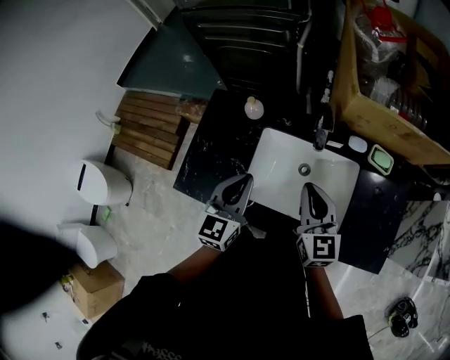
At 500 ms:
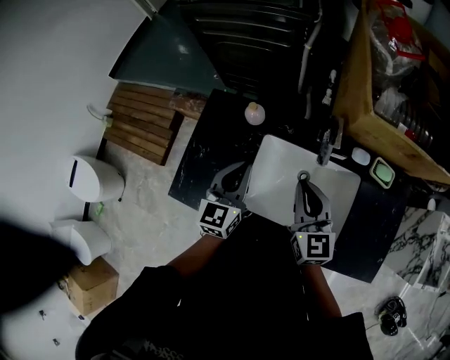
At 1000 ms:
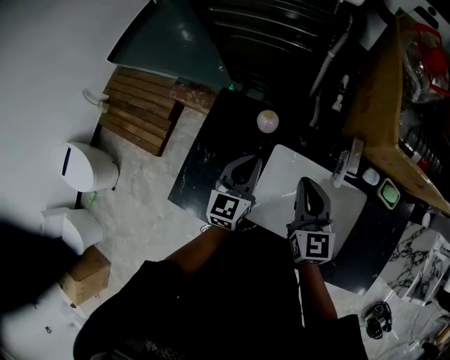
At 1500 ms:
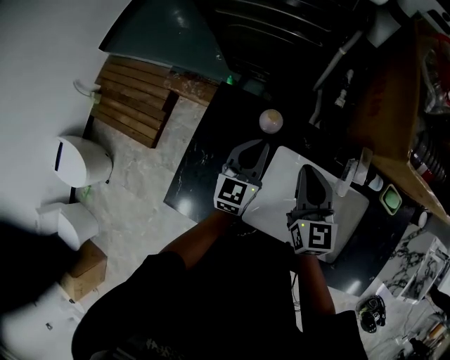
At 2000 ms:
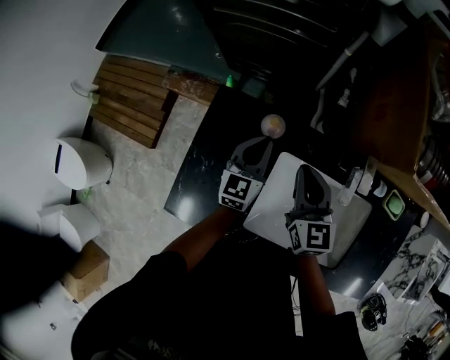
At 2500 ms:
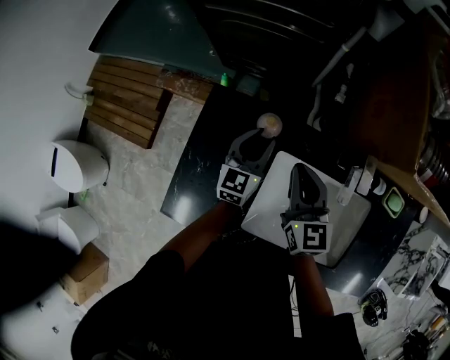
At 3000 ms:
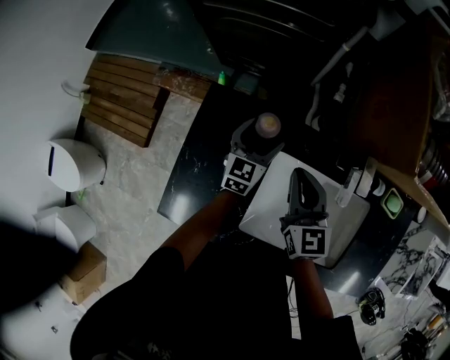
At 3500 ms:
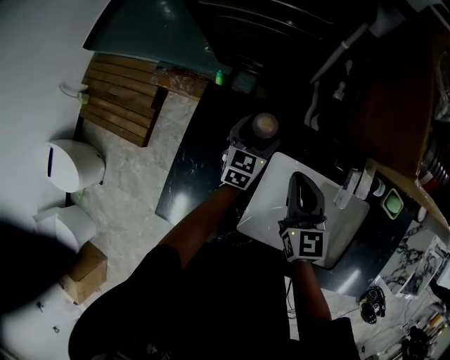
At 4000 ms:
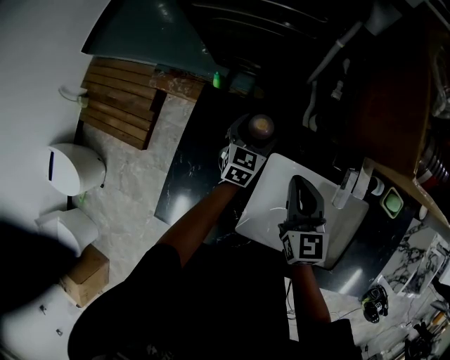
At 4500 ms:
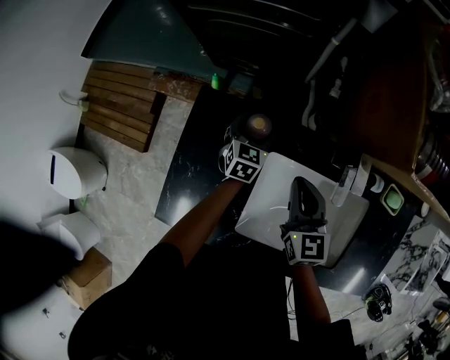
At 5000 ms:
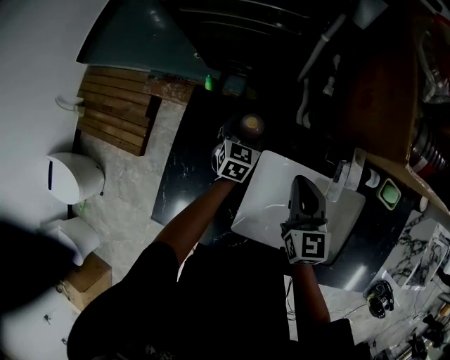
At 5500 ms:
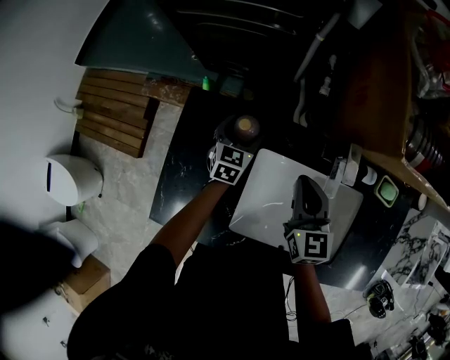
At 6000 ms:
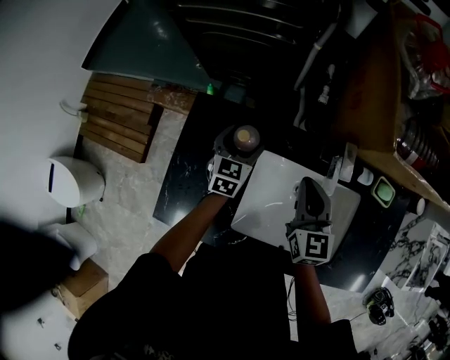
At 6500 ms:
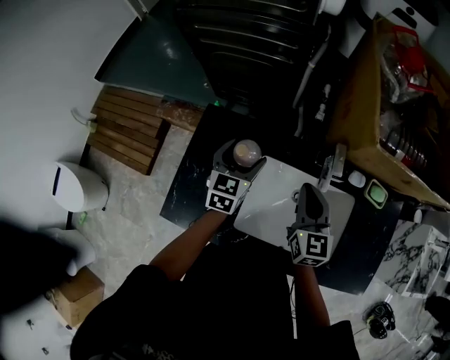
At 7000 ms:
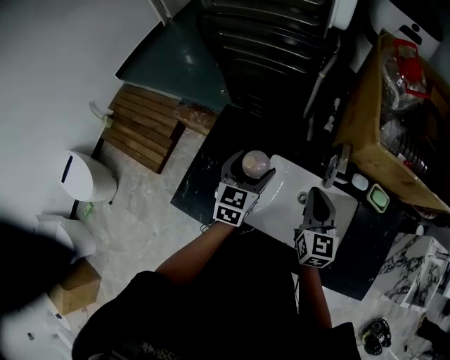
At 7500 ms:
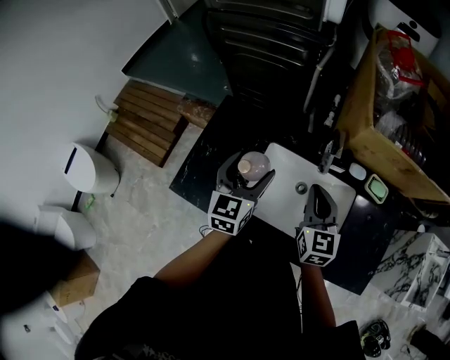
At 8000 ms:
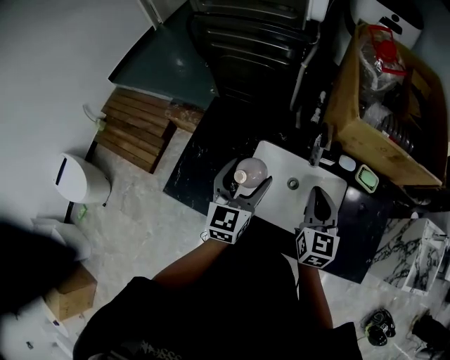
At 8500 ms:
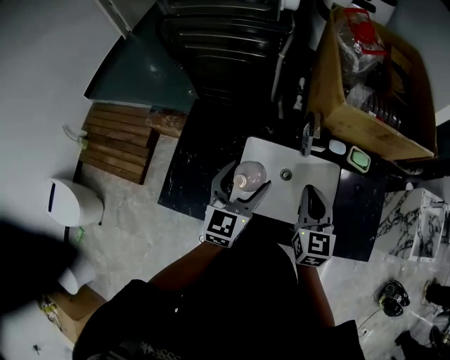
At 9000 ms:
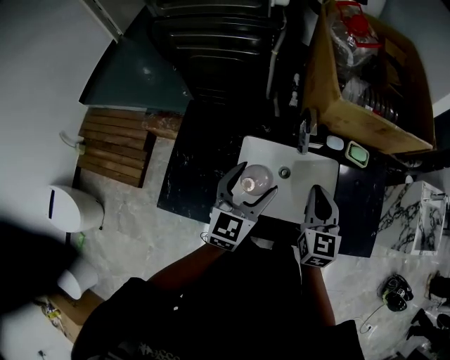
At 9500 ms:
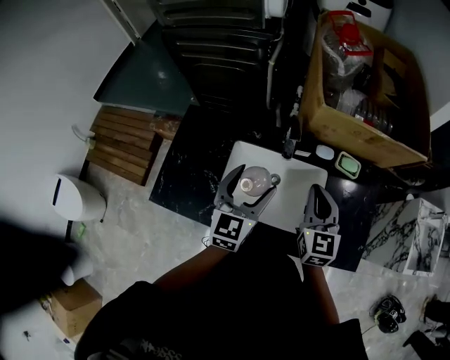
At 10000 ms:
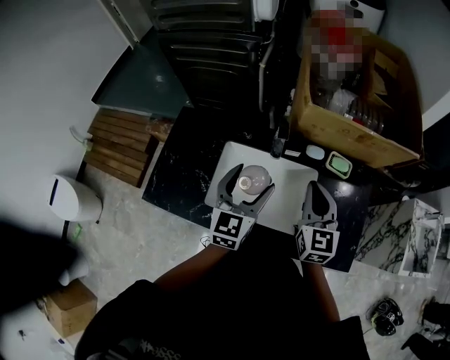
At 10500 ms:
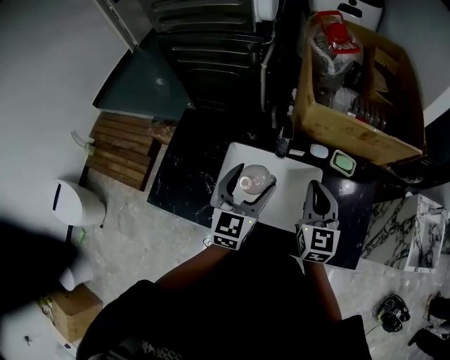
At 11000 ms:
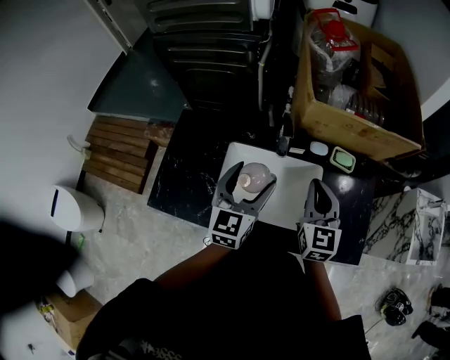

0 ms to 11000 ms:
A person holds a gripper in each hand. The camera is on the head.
0 ms to 2000 ms: The right gripper moves forward and to the left, approximately 25 cm; the left gripper is displaced forward and downward by about 30 cm.
2000 ms to 3500 ms: The left gripper heads downward and forward, covering roughly 10 cm, and opens.
3500 ms to 5500 ms: The right gripper is displaced to the right by some 5 cm.
5500 ms to 7500 ms: The right gripper moves backward, upward and to the right, some 15 cm. Meanwhile the left gripper is displaced upward and backward by some 30 cm, and turns by about 20 degrees.
7500 ms to 9000 ms: The right gripper moves roughly 5 cm. The left gripper heads to the right, covering approximately 5 cm.
9000 ms to 11000 ms: Both grippers move to the right, roughly 5 cm.

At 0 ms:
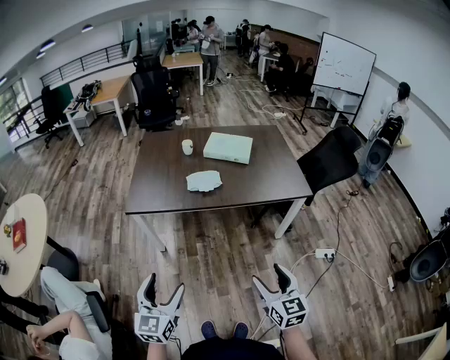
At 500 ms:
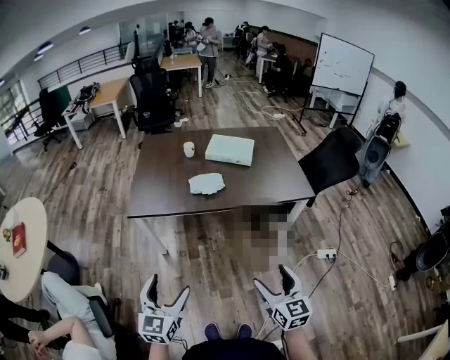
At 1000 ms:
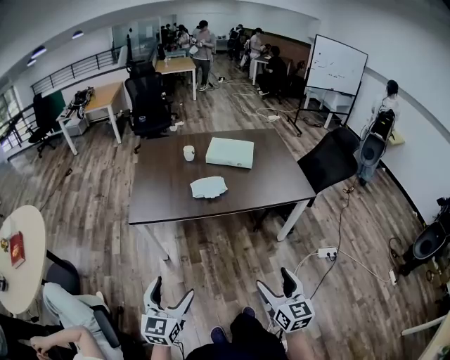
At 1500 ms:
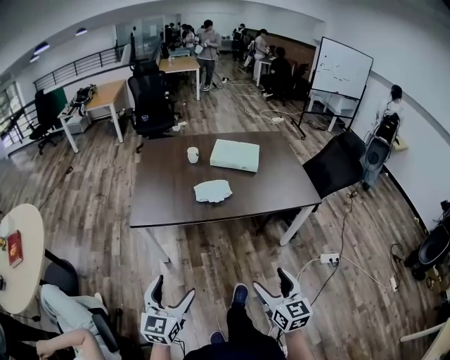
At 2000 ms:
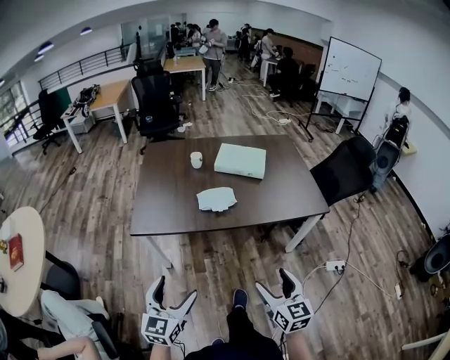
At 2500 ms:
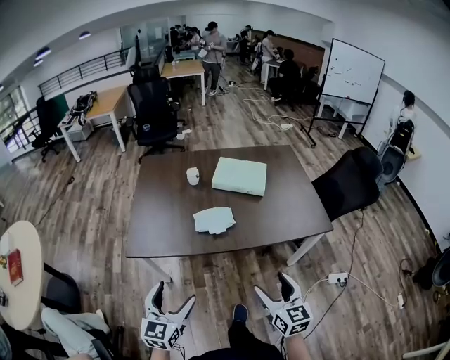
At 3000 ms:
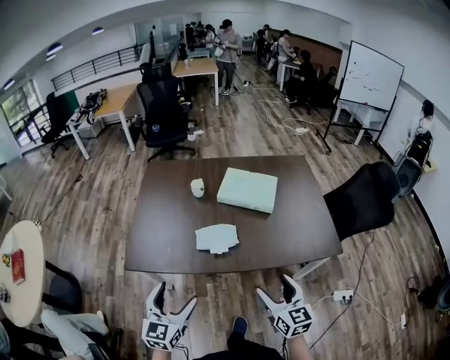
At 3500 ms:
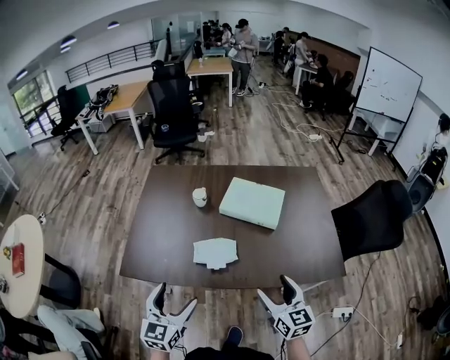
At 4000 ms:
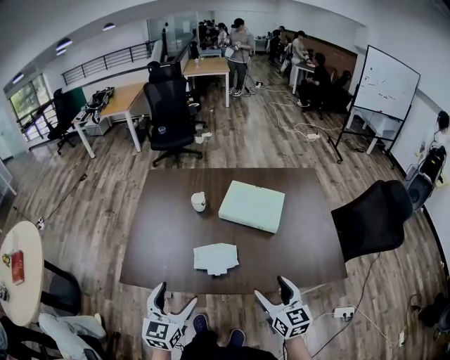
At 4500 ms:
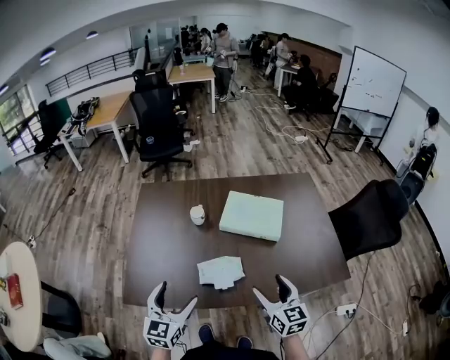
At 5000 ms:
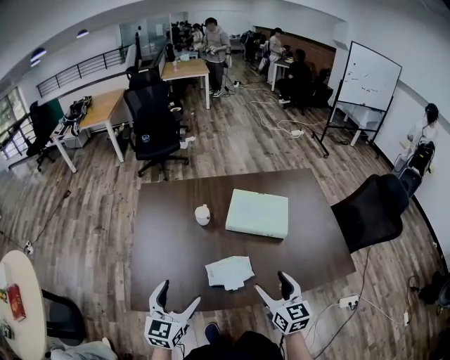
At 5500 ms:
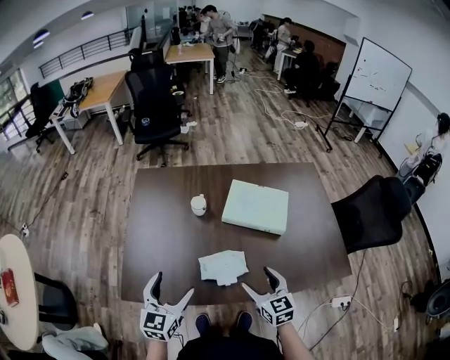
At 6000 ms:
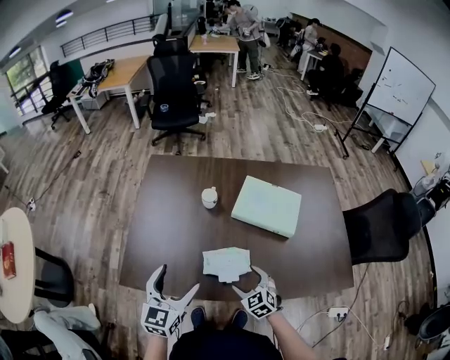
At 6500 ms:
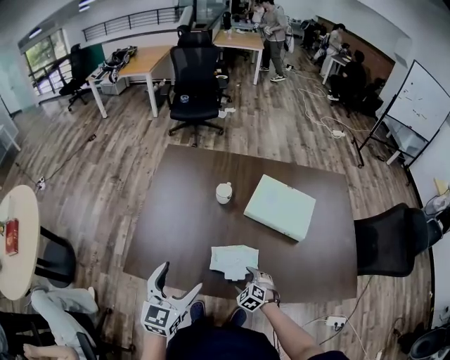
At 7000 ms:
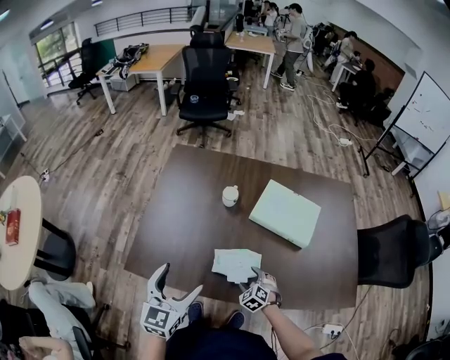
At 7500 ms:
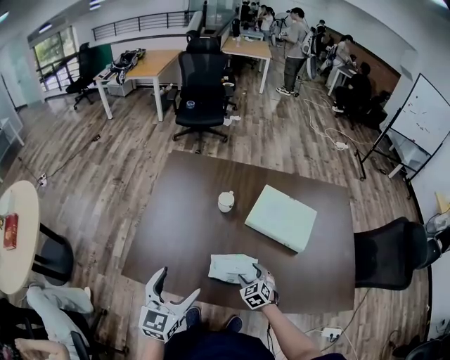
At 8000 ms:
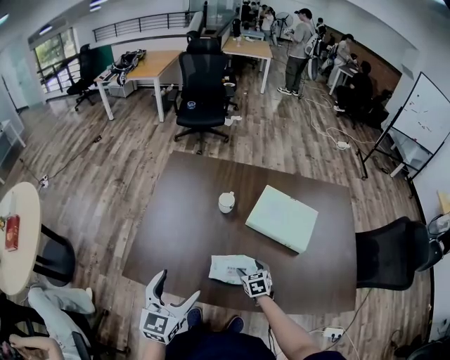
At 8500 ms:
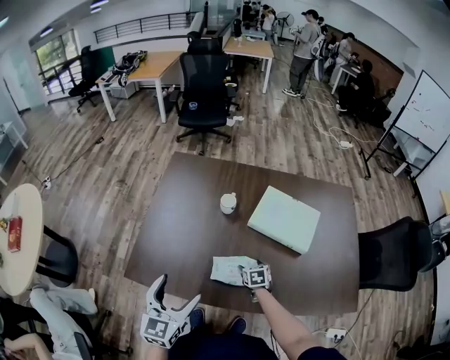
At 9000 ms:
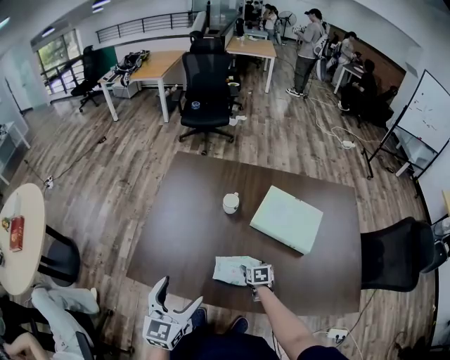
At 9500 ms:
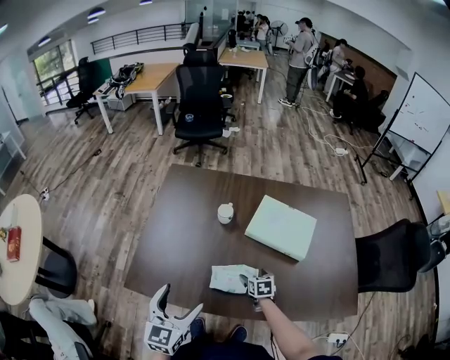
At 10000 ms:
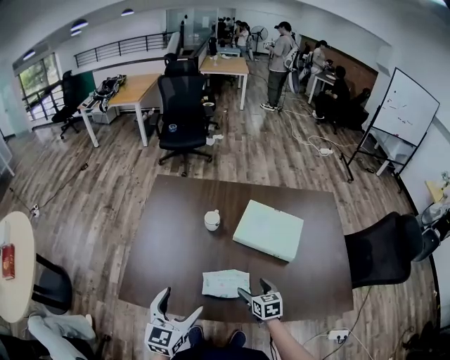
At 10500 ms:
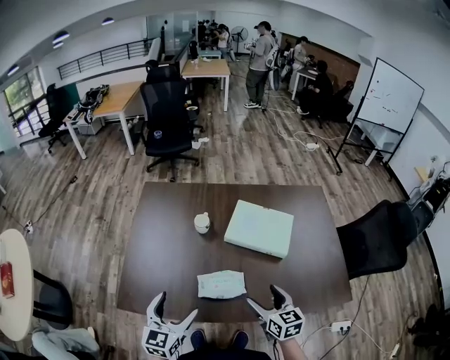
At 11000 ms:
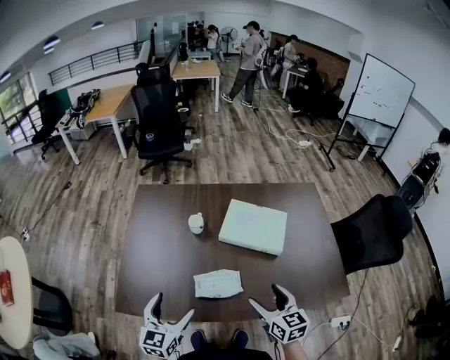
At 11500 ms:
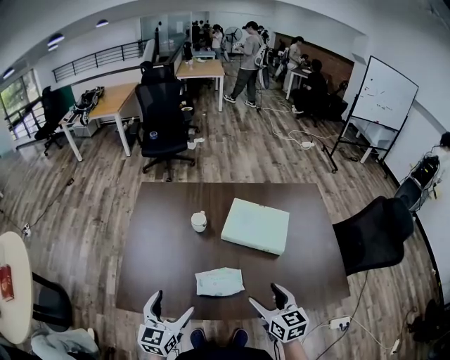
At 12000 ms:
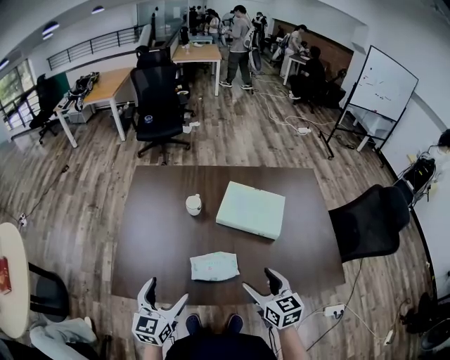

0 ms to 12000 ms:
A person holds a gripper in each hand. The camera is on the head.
0 ms to 2000 ms: The right gripper travels forward and to the left by some 15 cm, while the left gripper moves forward, about 15 cm.
2000 ms to 4000 ms: The grippers both shift forward by about 35 cm.
4000 ms to 6000 ms: The right gripper goes roughly 25 cm downward, to the left and forward, and turns by approximately 40 degrees, while the left gripper goes approximately 15 cm forward and to the left.
6000 ms to 8000 ms: The right gripper heads forward and downward, covering some 15 cm, and turns by approximately 20 degrees.
8000 ms to 10000 ms: The right gripper travels upward by some 10 cm.
10000 ms to 12000 ms: The right gripper shifts approximately 15 cm upward and backward.

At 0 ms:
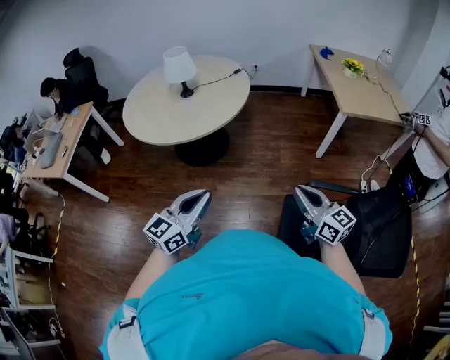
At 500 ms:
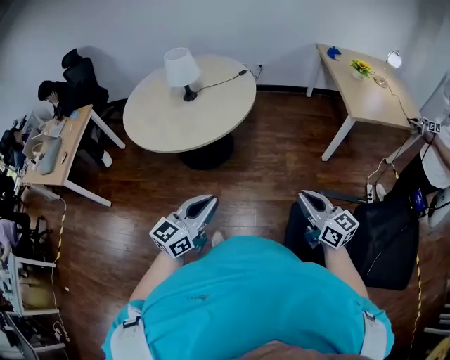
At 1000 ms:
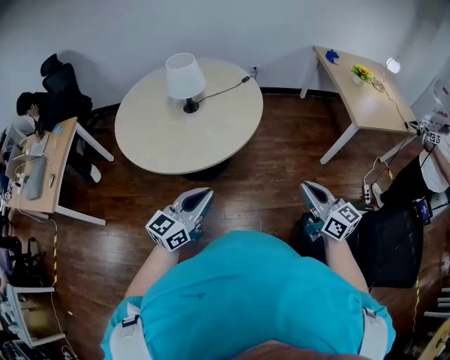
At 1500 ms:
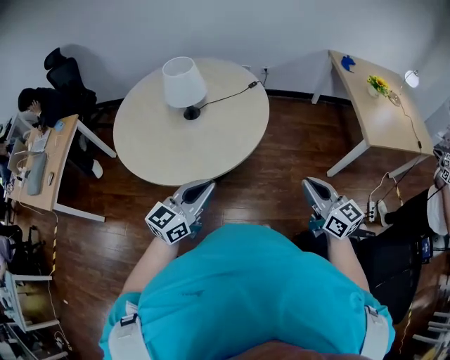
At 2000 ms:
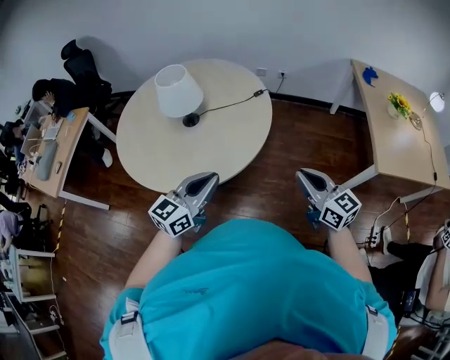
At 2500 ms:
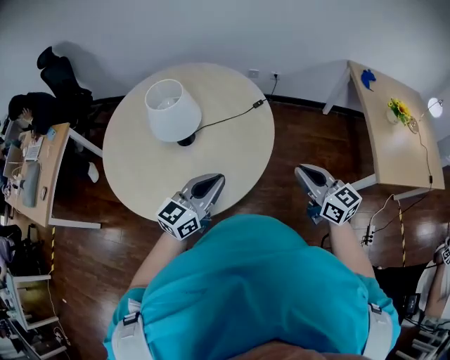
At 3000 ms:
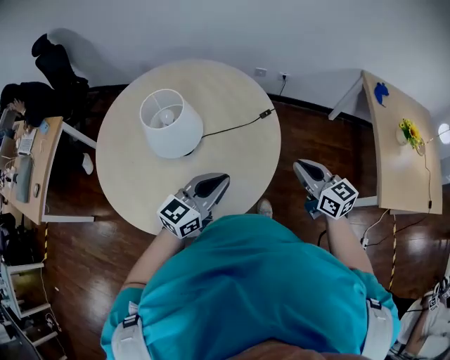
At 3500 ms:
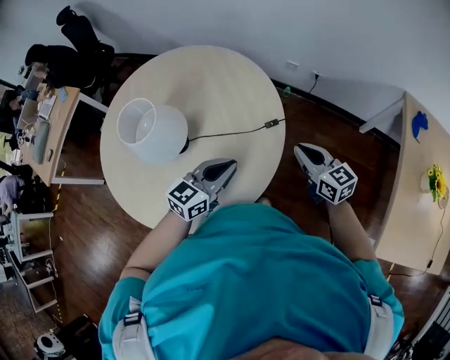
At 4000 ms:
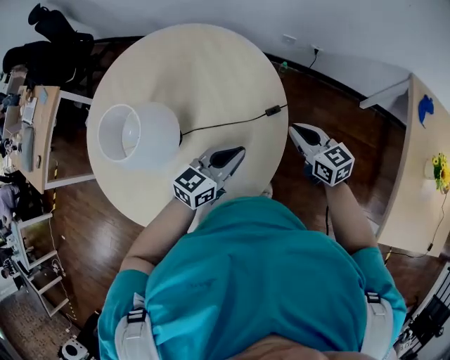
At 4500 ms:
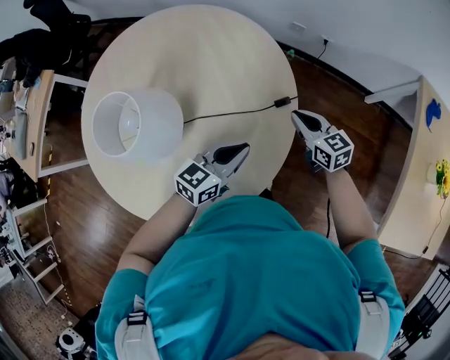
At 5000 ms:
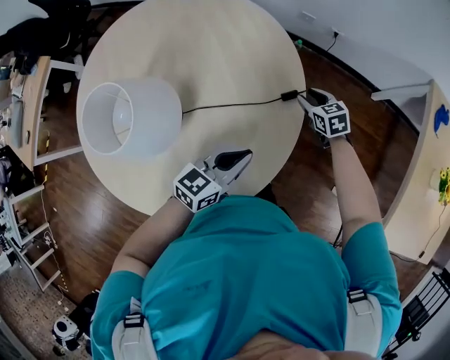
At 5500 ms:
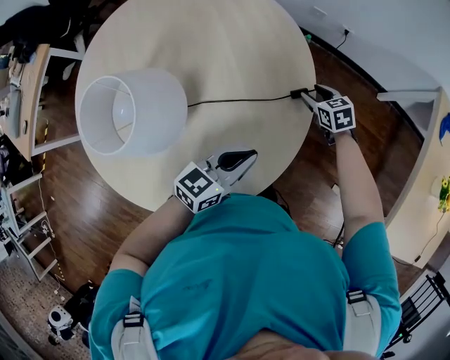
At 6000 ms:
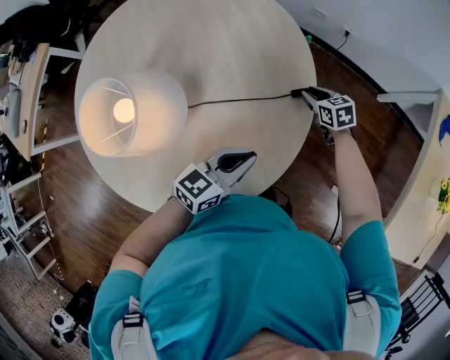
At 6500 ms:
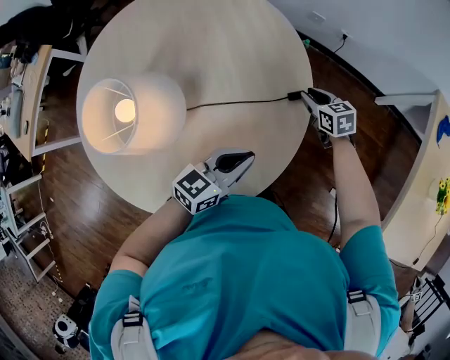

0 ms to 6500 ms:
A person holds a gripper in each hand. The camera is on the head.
0 ms to 2000 ms: The two grippers travel together, forward, some 50 cm.
2000 ms to 4500 ms: The pair of grippers is taken forward, about 70 cm. The right gripper turns by about 30 degrees, while the left gripper turns by some 30 degrees.
4500 ms to 6500 ms: The right gripper travels downward and forward by some 15 cm, swivels some 20 degrees, and opens.
